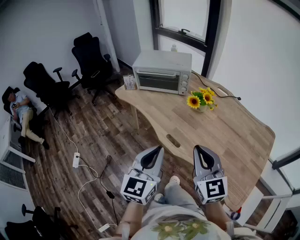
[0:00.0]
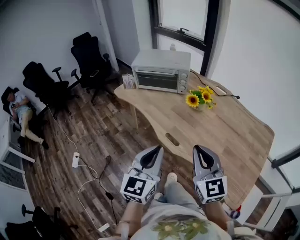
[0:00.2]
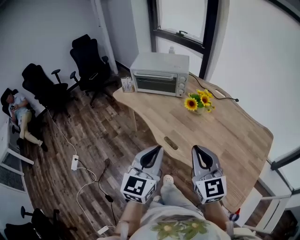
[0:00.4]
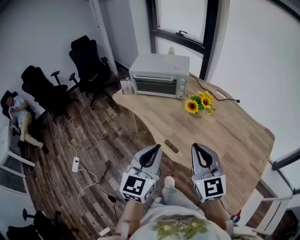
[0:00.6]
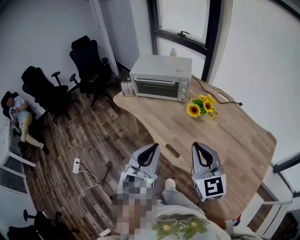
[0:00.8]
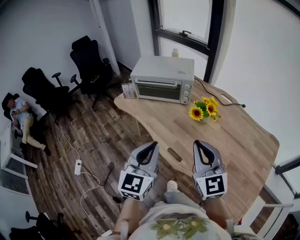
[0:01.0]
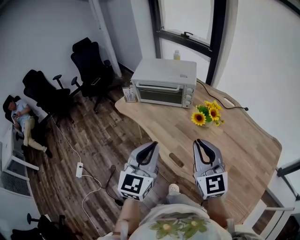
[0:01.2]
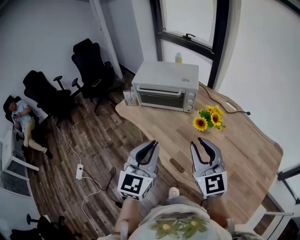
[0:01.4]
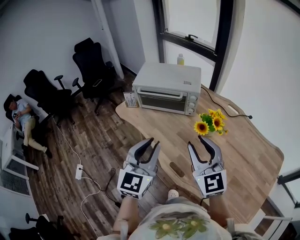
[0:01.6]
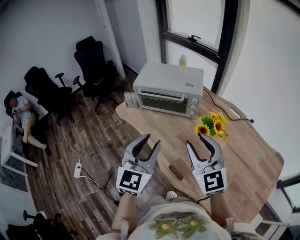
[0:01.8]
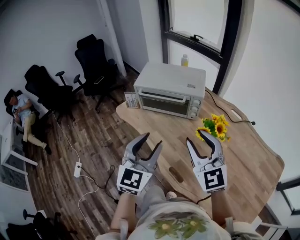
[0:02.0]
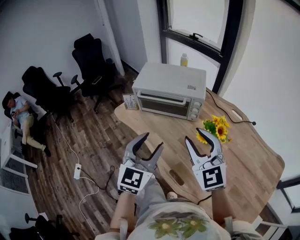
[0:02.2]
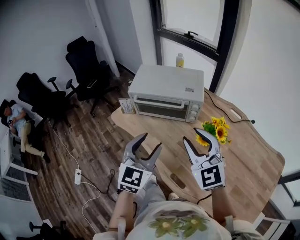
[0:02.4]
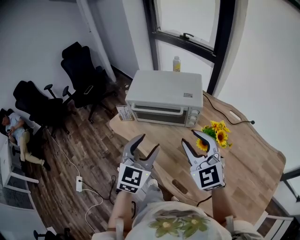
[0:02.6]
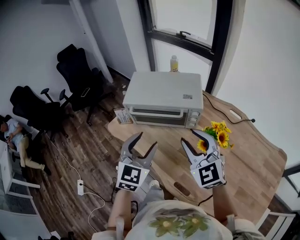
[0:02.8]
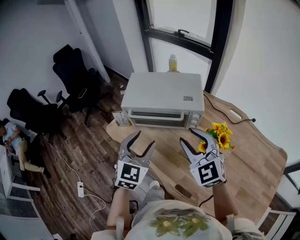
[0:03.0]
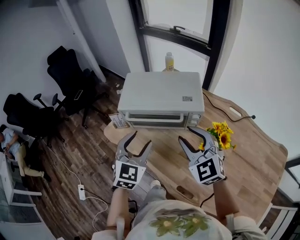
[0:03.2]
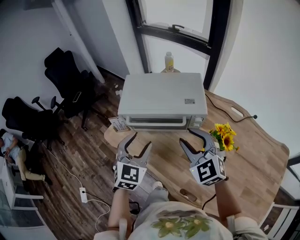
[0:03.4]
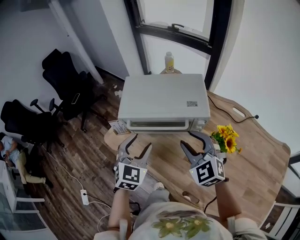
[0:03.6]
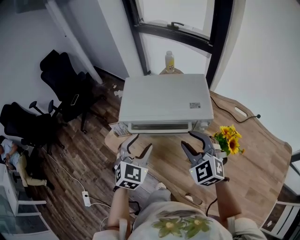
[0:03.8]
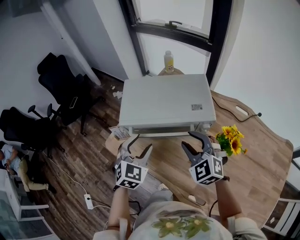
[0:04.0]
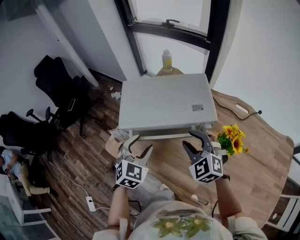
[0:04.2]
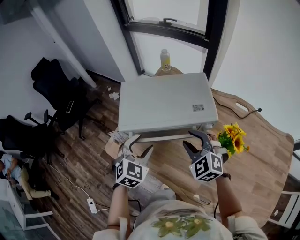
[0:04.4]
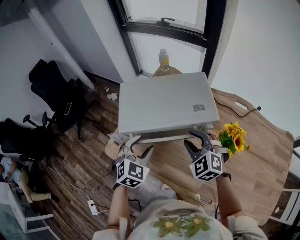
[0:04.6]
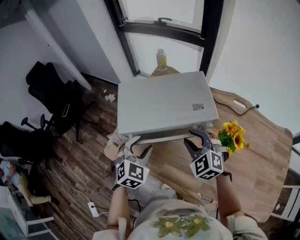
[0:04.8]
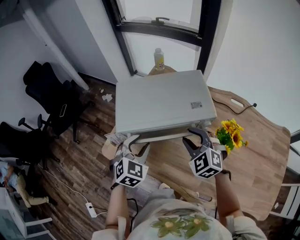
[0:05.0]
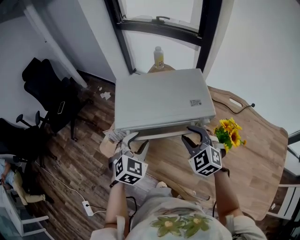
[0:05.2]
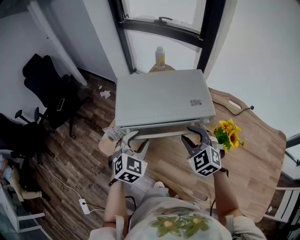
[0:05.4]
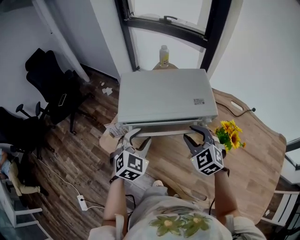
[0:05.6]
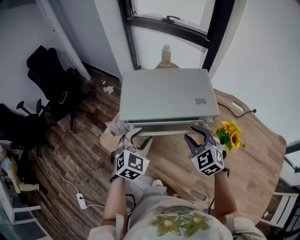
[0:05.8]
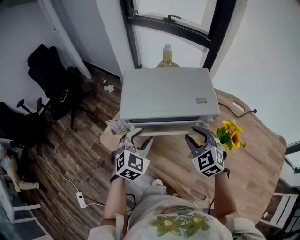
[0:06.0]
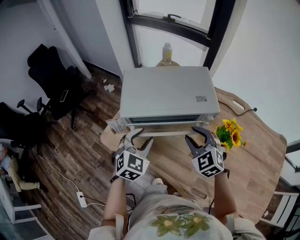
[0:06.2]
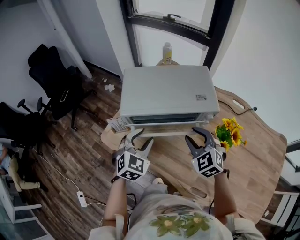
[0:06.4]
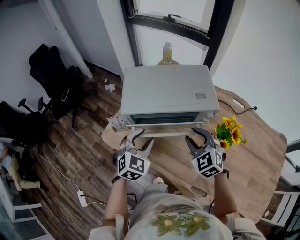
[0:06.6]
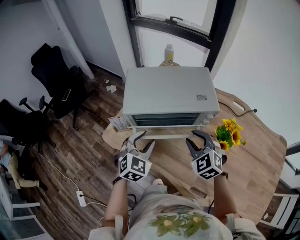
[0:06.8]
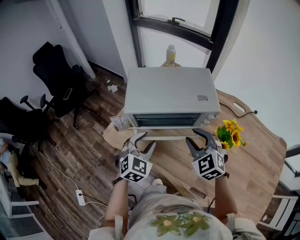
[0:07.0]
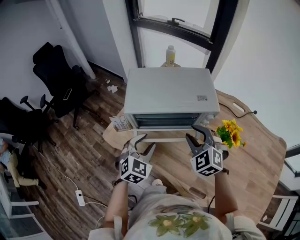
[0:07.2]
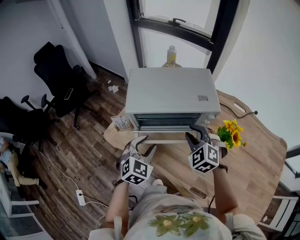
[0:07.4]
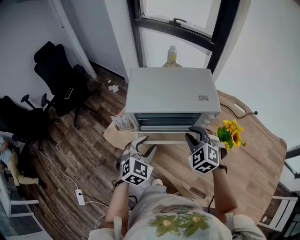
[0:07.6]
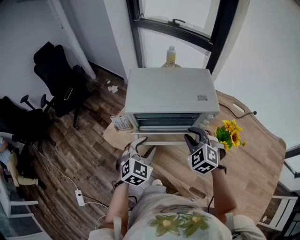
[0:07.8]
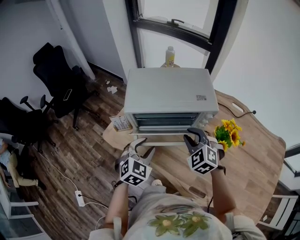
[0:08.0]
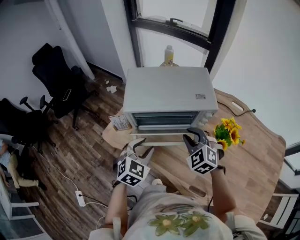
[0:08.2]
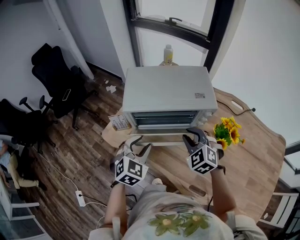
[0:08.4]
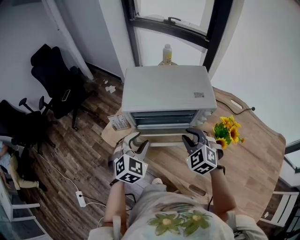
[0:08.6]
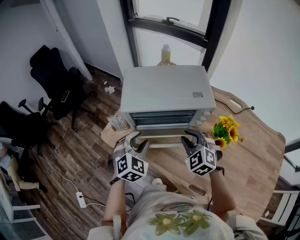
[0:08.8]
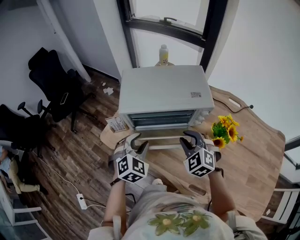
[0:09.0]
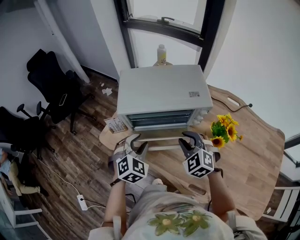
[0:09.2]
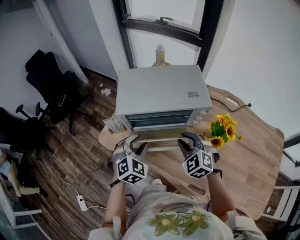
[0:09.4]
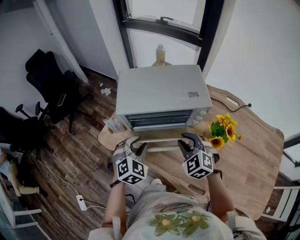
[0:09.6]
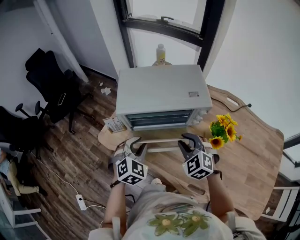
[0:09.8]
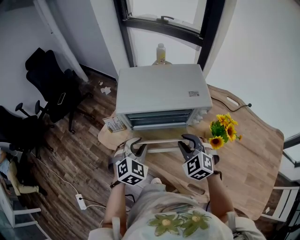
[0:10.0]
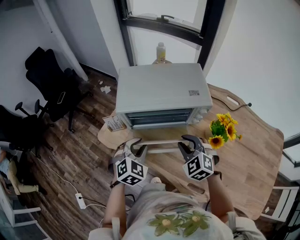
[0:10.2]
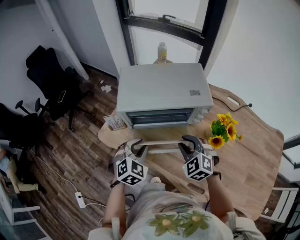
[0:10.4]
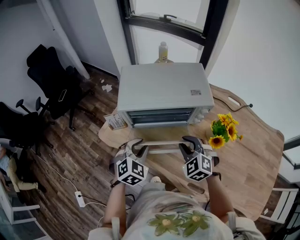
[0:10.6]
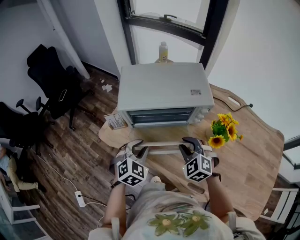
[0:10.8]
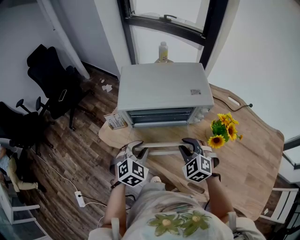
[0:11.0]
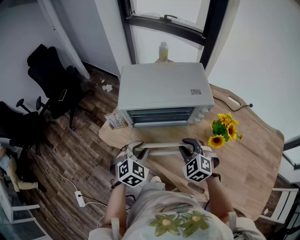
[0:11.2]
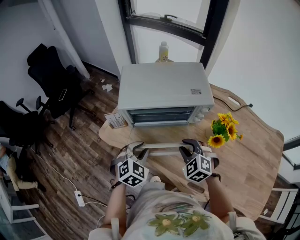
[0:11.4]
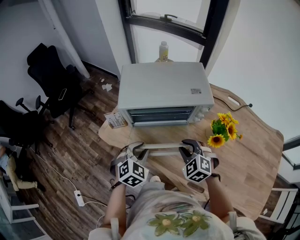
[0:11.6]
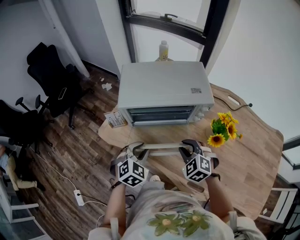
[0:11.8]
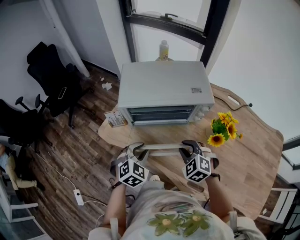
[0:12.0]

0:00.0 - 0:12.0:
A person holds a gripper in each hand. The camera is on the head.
0:00.0 - 0:01.6: The grippers both shift forward by some 20 cm. The right gripper opens up.
0:01.6 - 0:03.0: Both grippers move forward, approximately 20 cm. The left gripper swivels approximately 20 degrees, and opens up.
0:03.0 - 0:04.4: The right gripper is displaced downward and forward by some 15 cm, and rotates some 20 degrees; the left gripper travels forward and downward by some 15 cm, and turns by about 20 degrees.
0:04.4 - 0:06.0: The grippers make only small movements.
0:06.0 - 0:07.6: The left gripper heads backward, covering roughly 5 cm.
0:07.6 - 0:10.4: There are only small adjustments of the grippers.
0:10.4 - 0:12.0: There are only small adjustments of the grippers.

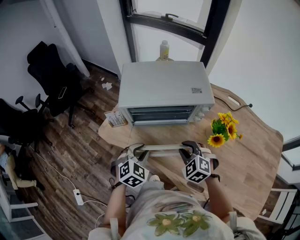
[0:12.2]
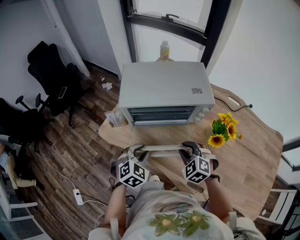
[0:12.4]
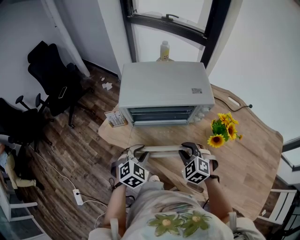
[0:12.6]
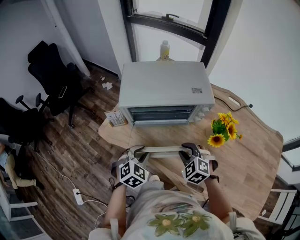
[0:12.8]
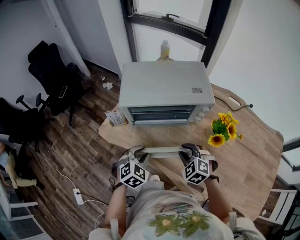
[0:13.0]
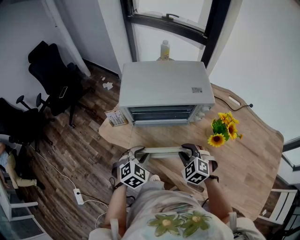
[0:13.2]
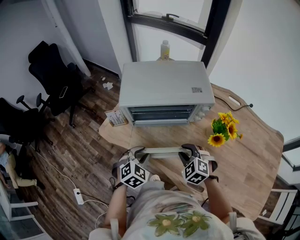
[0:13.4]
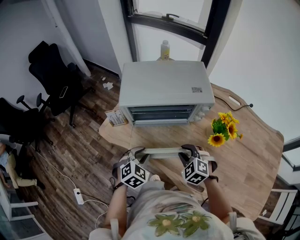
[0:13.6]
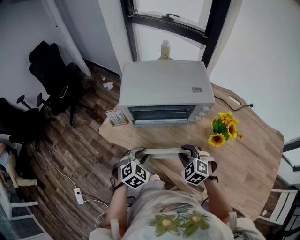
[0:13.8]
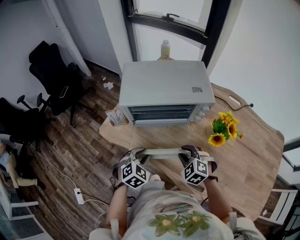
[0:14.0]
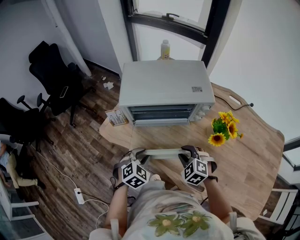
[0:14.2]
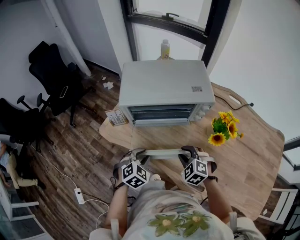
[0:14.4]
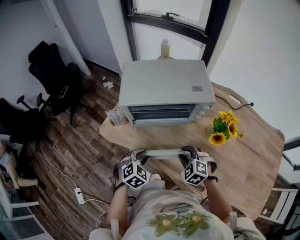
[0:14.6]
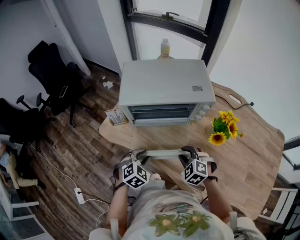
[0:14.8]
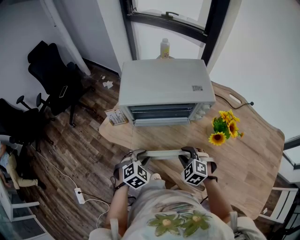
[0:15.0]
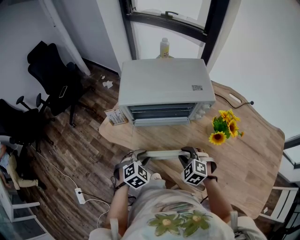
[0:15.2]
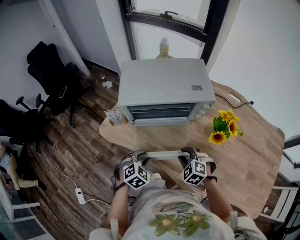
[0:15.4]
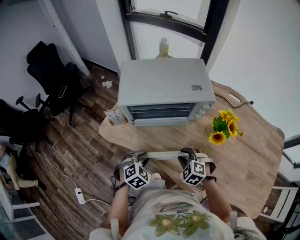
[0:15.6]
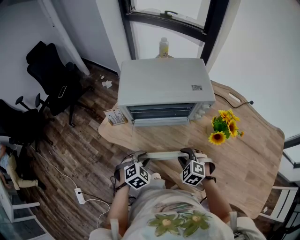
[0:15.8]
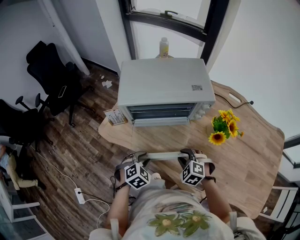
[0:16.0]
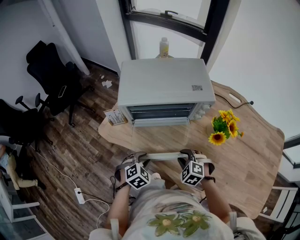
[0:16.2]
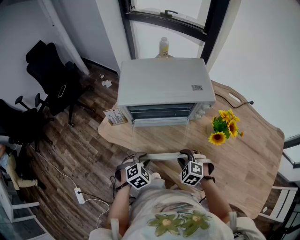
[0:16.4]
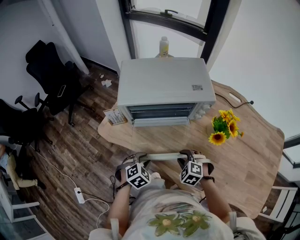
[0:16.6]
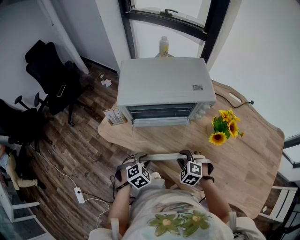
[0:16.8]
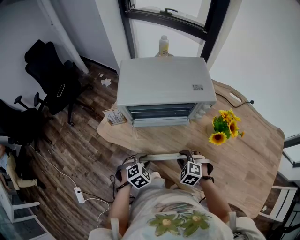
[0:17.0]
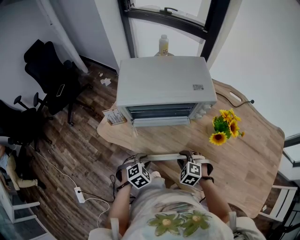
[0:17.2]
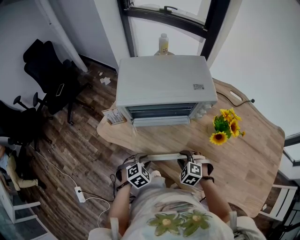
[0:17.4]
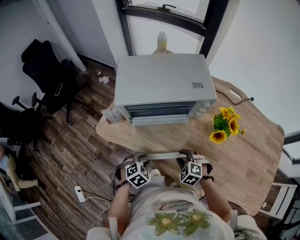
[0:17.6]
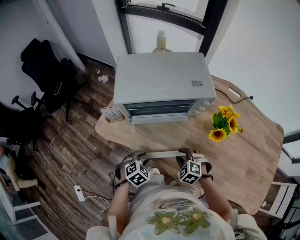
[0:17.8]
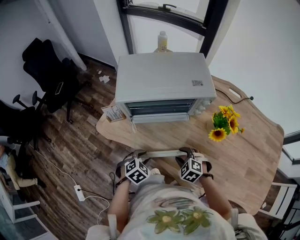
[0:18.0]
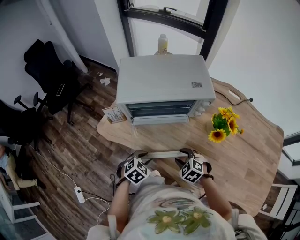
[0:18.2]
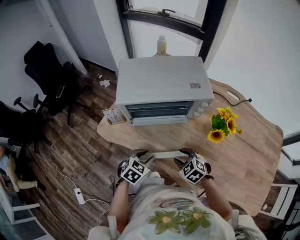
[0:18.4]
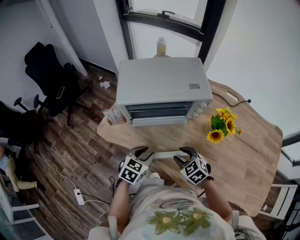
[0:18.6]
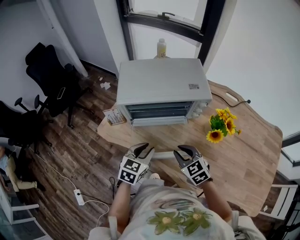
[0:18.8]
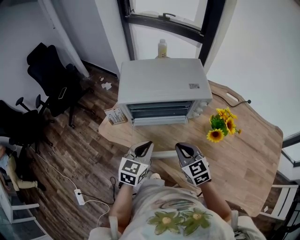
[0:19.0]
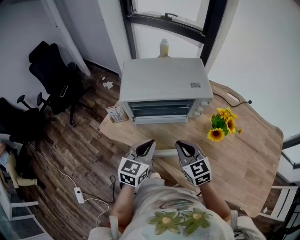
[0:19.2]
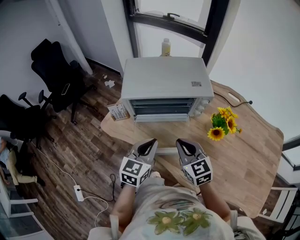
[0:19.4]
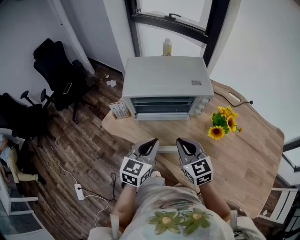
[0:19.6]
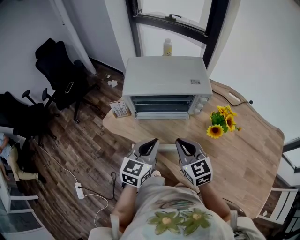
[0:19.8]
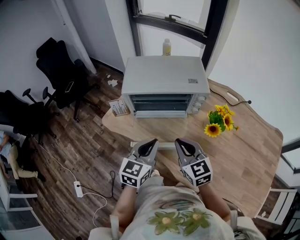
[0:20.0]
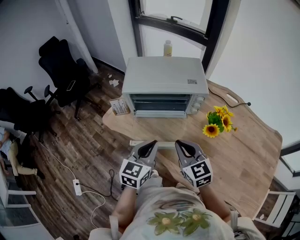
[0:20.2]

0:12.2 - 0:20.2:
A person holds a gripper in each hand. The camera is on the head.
0:12.2 - 0:13.8: The grippers stay close to where they were, moving slightly.
0:13.8 - 0:15.4: There are only small adjustments of the grippers.
0:15.4 - 0:17.0: The grippers make only small movements.
0:17.0 - 0:18.6: The two grippers go approximately 5 cm upward. The left gripper turns by roughly 30 degrees. The right gripper changes its angle by about 30 degrees.
0:18.6 - 0:20.2: The grippers both shift upward by some 15 cm. The right gripper changes its angle by roughly 30 degrees, and closes, while the left gripper changes its angle by some 30 degrees, and closes up.

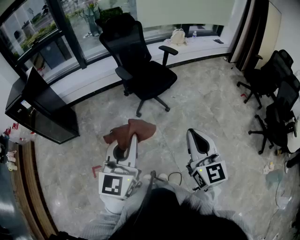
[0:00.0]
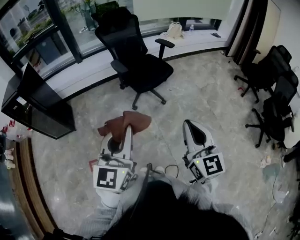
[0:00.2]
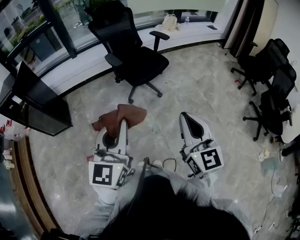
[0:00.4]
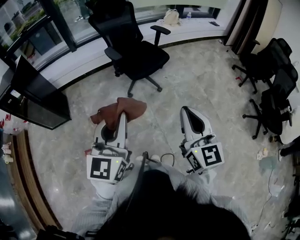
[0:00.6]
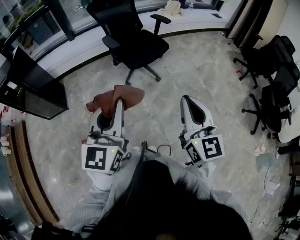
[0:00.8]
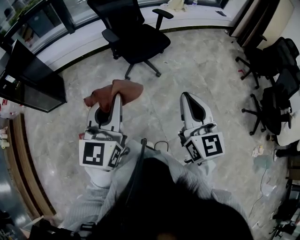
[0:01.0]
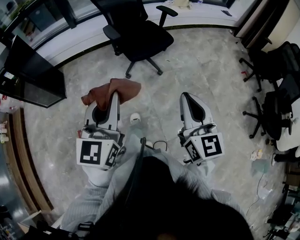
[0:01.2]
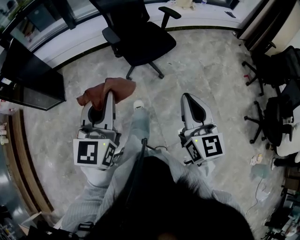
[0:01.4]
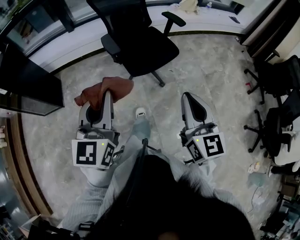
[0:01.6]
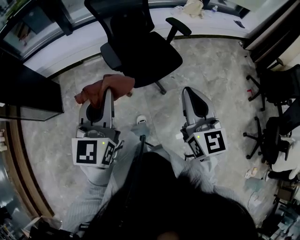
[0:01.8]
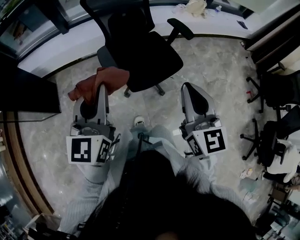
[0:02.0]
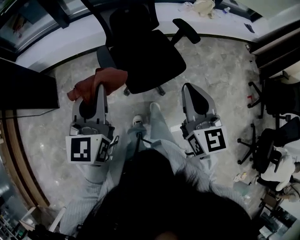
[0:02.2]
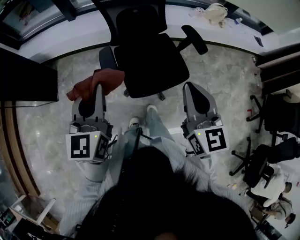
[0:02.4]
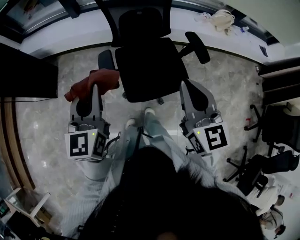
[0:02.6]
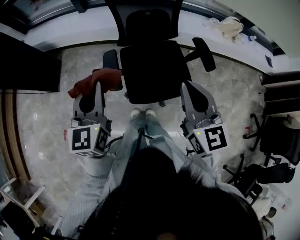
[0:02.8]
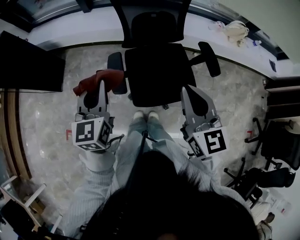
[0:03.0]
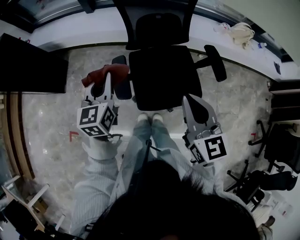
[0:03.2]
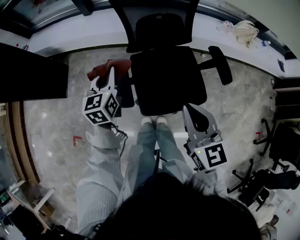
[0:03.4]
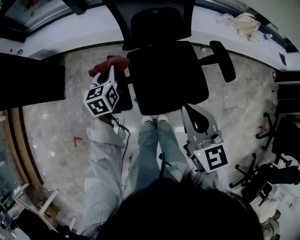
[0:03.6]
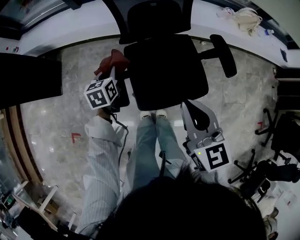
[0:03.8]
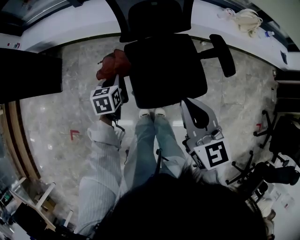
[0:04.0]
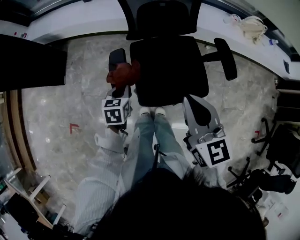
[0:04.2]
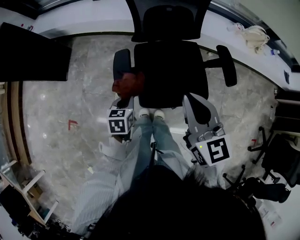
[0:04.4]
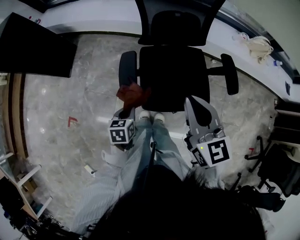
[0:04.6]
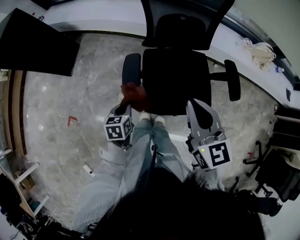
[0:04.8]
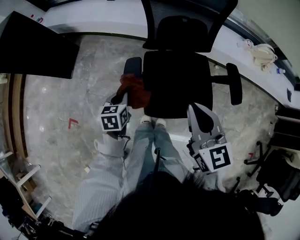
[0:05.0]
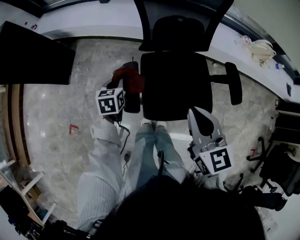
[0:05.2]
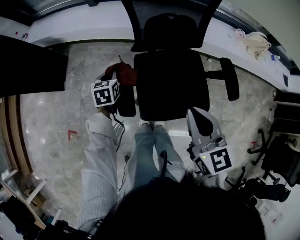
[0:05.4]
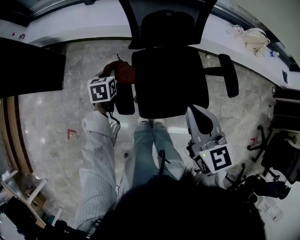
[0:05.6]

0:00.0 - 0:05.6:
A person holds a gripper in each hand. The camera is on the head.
0:00.0 - 0:01.4: The right gripper heads forward, to the right and downward, covering approximately 15 cm. The left gripper heads forward, covering roughly 15 cm.
0:01.4 - 0:02.8: The pair of grippers is taken about 60 cm. The right gripper rotates some 30 degrees. Meanwhile the left gripper turns by some 30 degrees.
0:02.8 - 0:04.2: The right gripper is displaced downward and forward by roughly 10 cm. The left gripper is displaced downward by about 30 cm, and tips its fingers downward by approximately 40 degrees.
0:04.2 - 0:05.6: The left gripper is displaced forward and to the left by some 20 cm, while the right gripper moves forward, about 5 cm.
